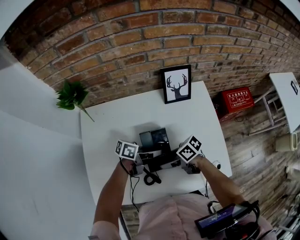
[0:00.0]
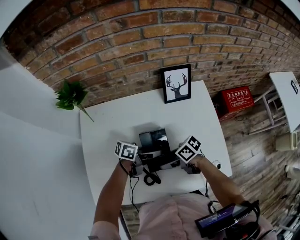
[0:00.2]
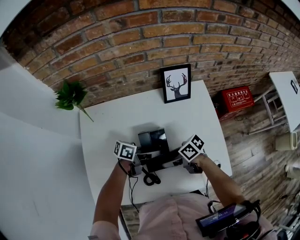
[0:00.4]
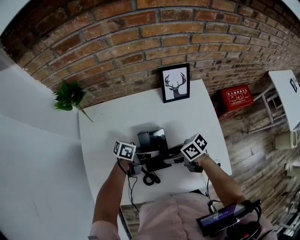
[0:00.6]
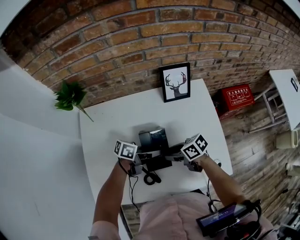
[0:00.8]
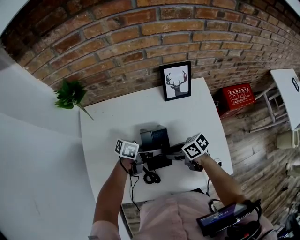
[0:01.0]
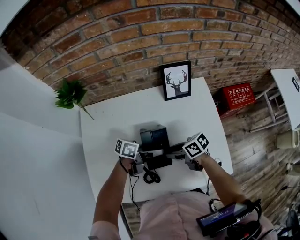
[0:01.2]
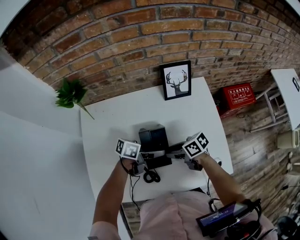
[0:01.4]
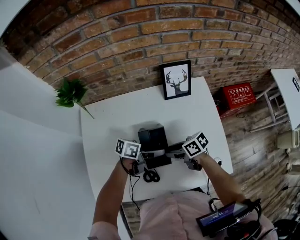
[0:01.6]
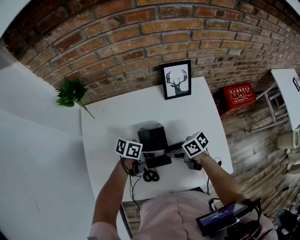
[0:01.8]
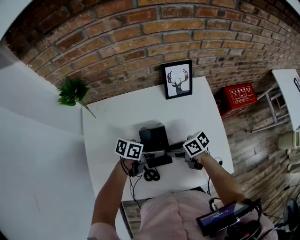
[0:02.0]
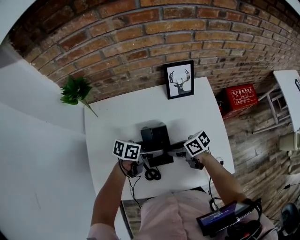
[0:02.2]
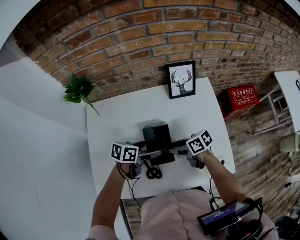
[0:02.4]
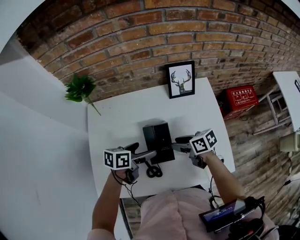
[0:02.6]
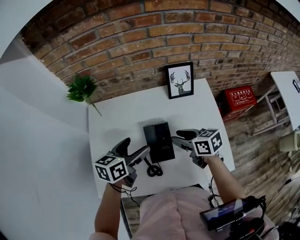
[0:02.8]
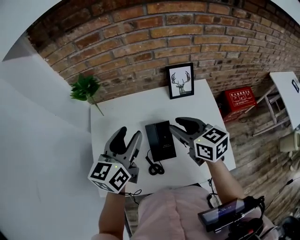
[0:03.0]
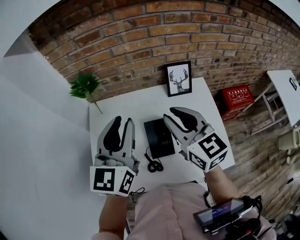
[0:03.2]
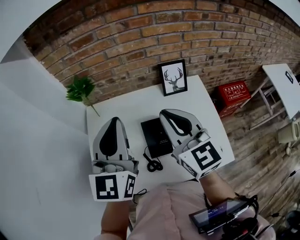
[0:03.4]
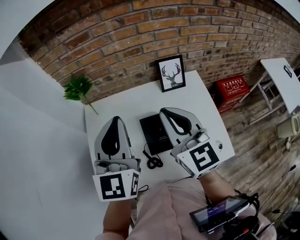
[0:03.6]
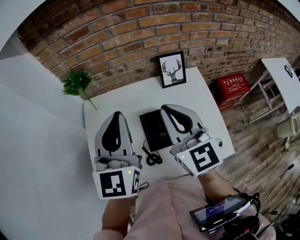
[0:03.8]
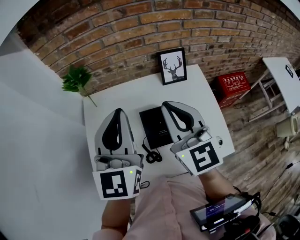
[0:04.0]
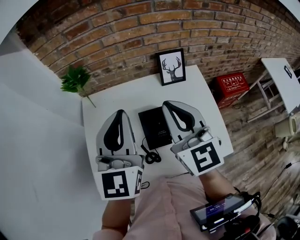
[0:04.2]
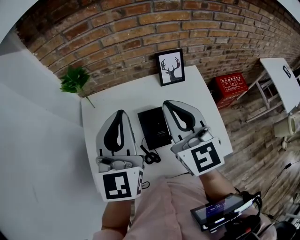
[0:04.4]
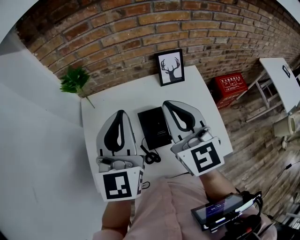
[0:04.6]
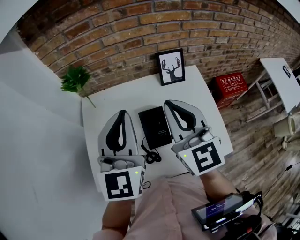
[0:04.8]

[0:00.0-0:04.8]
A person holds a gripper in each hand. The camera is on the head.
0:00.0 to 0:01.6: The left gripper opens up. Meanwhile the right gripper closes.
0:01.6 to 0:03.2: The grippers both shift upward by roughly 35 cm. The right gripper rotates some 70 degrees; the left gripper rotates roughly 90 degrees, and closes its fingers.
0:03.2 to 0:04.8: The grippers move only a little.

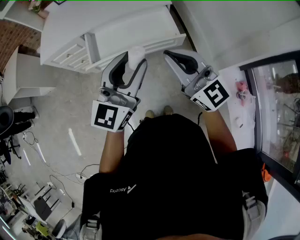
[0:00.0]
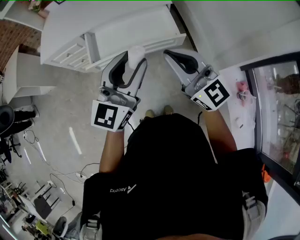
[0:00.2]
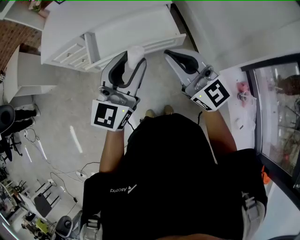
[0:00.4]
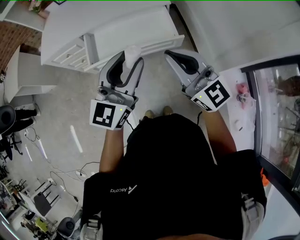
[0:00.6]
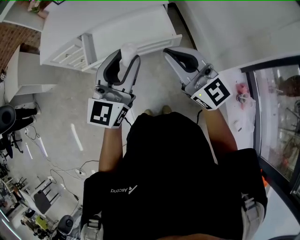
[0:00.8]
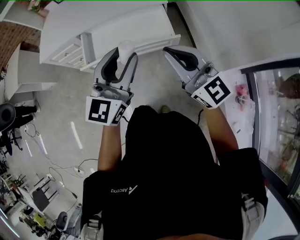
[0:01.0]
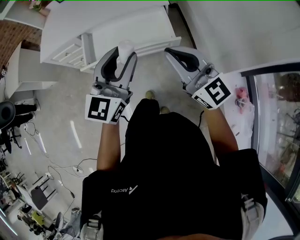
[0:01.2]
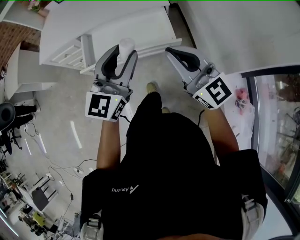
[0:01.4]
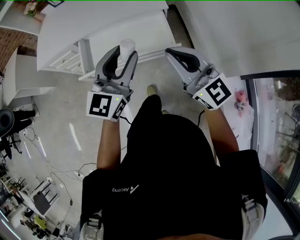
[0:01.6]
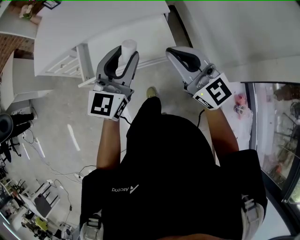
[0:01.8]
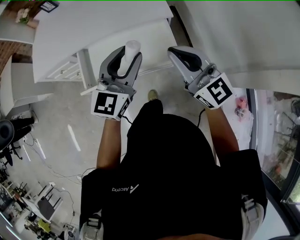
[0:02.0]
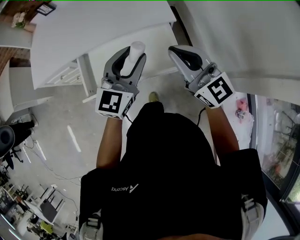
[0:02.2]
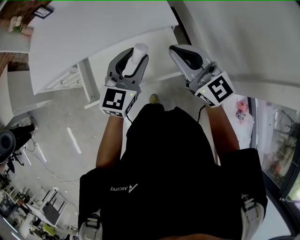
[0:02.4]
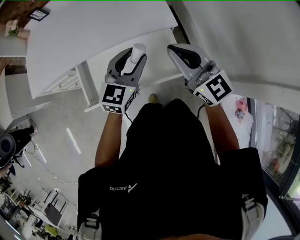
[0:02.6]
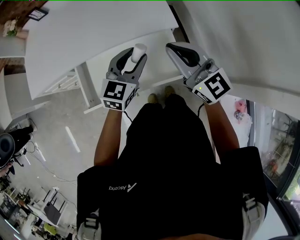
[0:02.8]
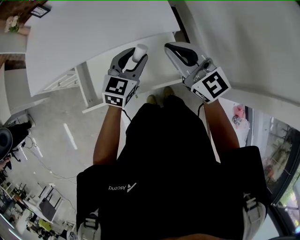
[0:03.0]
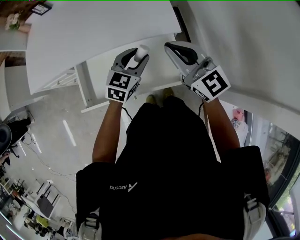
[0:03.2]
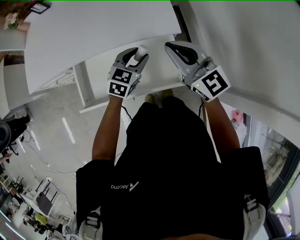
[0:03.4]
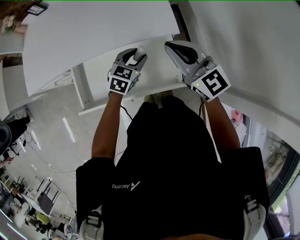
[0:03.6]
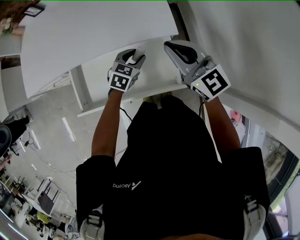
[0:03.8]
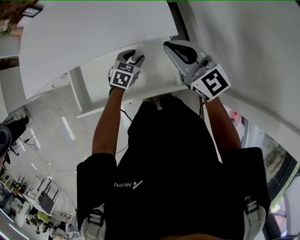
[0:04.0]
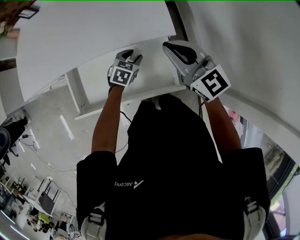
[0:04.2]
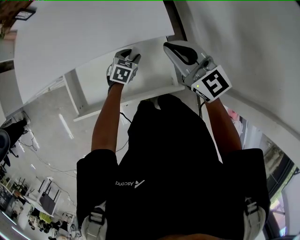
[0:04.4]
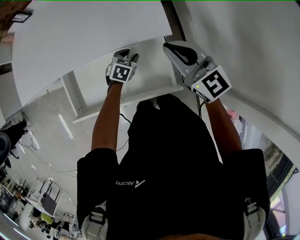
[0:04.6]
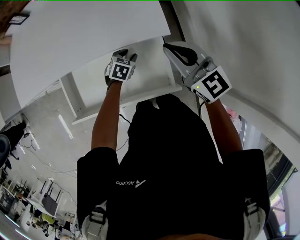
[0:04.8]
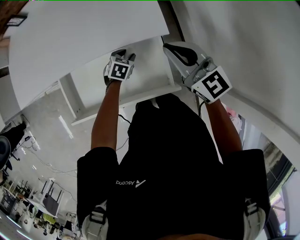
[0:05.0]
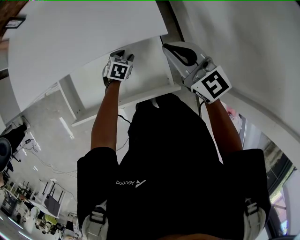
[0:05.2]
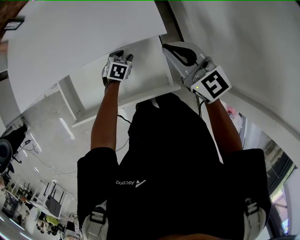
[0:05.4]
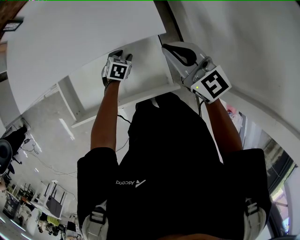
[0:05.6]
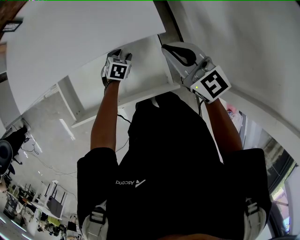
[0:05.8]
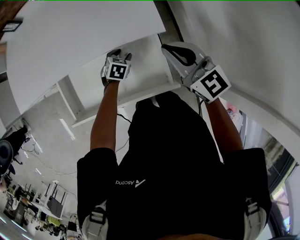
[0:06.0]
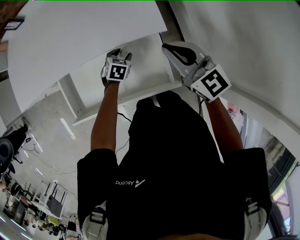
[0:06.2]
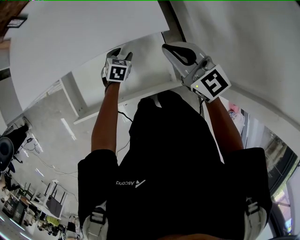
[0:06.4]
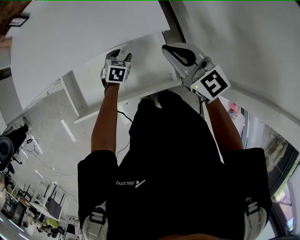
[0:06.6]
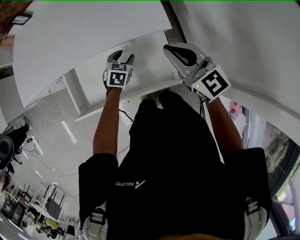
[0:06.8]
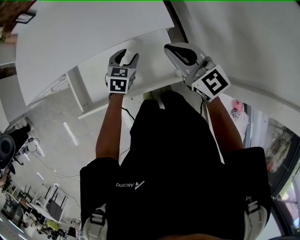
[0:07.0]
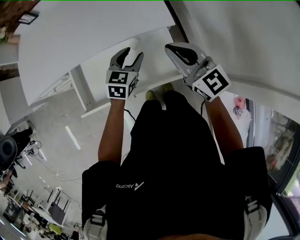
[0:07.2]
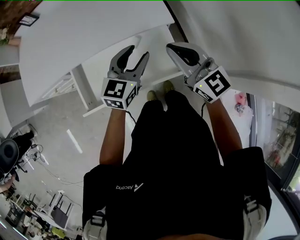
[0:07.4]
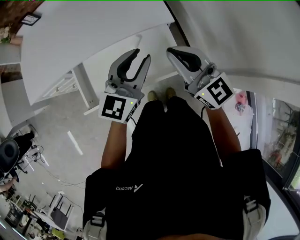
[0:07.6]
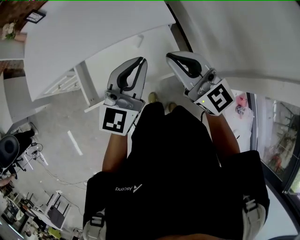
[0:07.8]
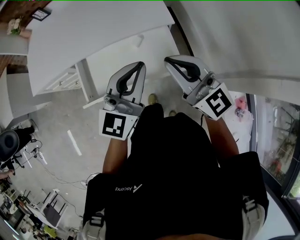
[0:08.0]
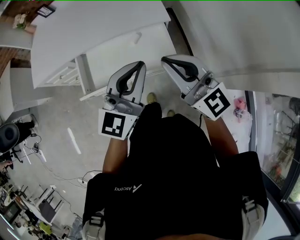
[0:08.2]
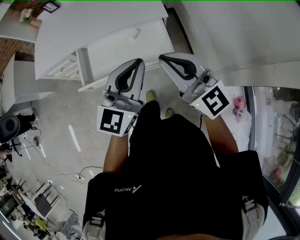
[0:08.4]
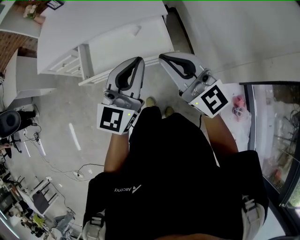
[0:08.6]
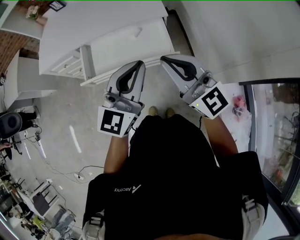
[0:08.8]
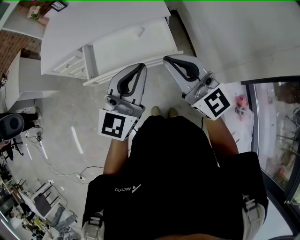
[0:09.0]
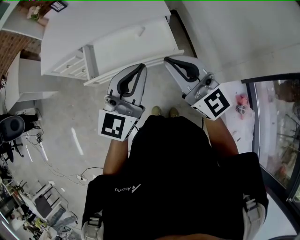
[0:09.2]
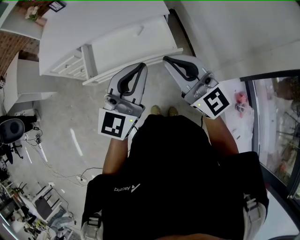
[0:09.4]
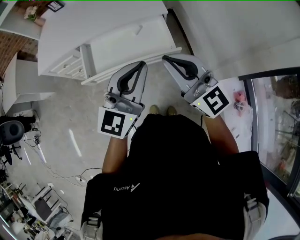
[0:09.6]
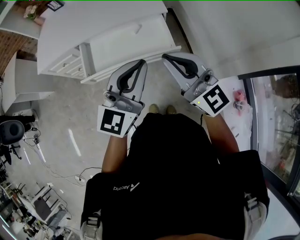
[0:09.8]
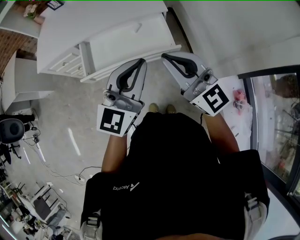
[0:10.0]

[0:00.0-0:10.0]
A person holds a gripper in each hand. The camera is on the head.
0:00.0 to 0:01.4: The left gripper is displaced forward and to the right by about 10 cm; the right gripper travels to the right and forward by some 10 cm.
0:01.4 to 0:02.8: The left gripper is displaced forward and downward by approximately 30 cm, and turns by roughly 20 degrees. Meanwhile the right gripper shifts roughly 25 cm forward.
0:02.8 to 0:04.2: The left gripper moves downward, approximately 20 cm, and tips its fingers downward by about 30 degrees. The right gripper is displaced forward and downward by about 10 cm.
0:04.2 to 0:05.8: The left gripper moves downward, about 5 cm.
0:05.8 to 0:07.2: The left gripper is displaced upward by about 20 cm, and changes its angle by some 30 degrees. The right gripper moves backward and to the left, approximately 10 cm.
0:07.2 to 0:08.6: Both grippers travel together backward and upward, roughly 30 cm. The left gripper tips its fingers upward by roughly 30 degrees, and closes up.
0:08.6 to 0:10.0: The left gripper moves approximately 5 cm.

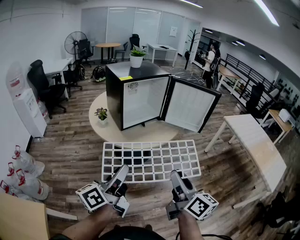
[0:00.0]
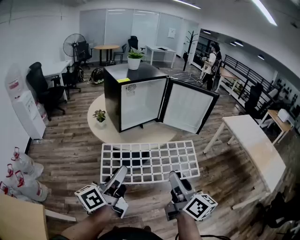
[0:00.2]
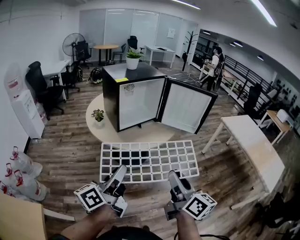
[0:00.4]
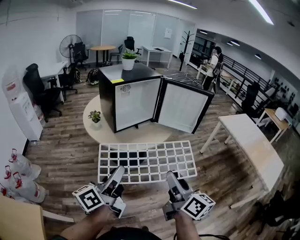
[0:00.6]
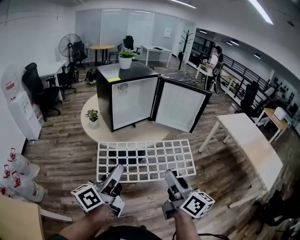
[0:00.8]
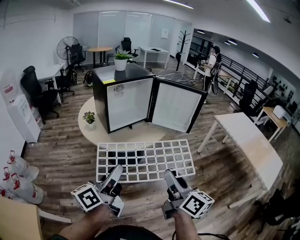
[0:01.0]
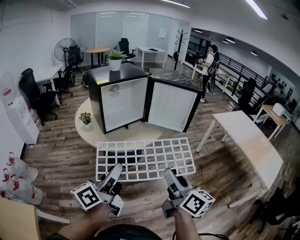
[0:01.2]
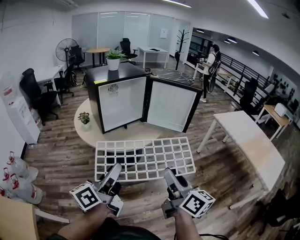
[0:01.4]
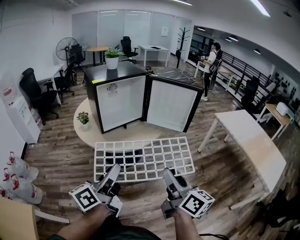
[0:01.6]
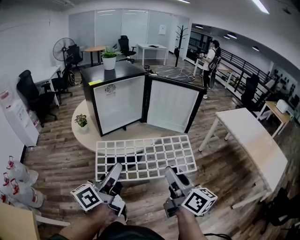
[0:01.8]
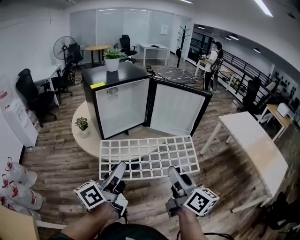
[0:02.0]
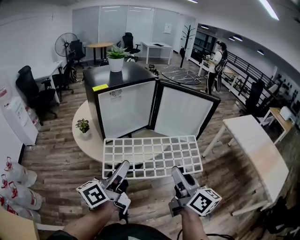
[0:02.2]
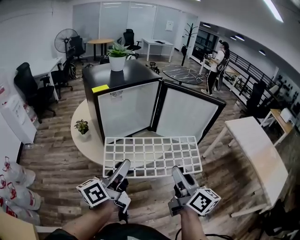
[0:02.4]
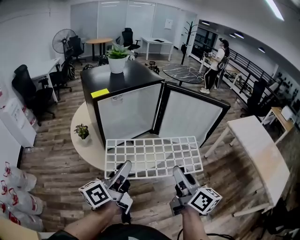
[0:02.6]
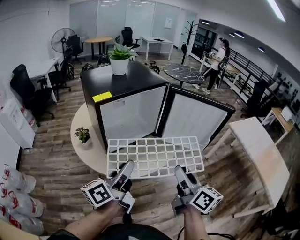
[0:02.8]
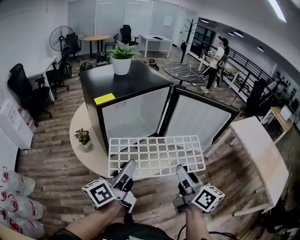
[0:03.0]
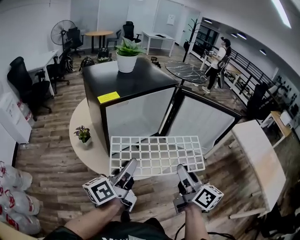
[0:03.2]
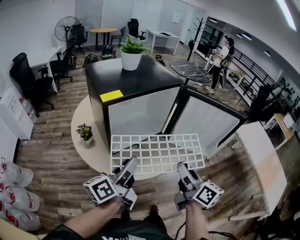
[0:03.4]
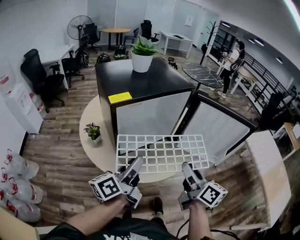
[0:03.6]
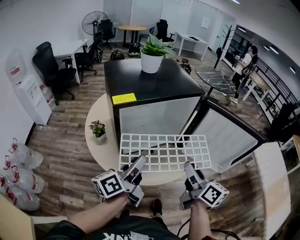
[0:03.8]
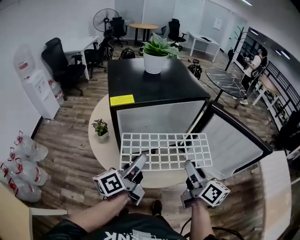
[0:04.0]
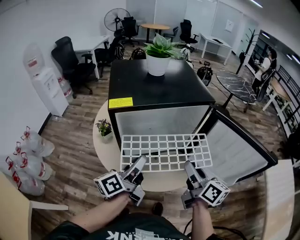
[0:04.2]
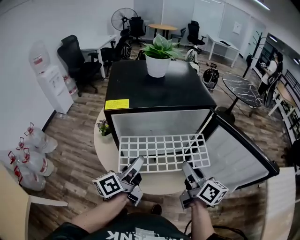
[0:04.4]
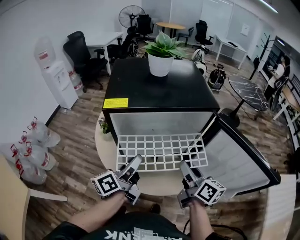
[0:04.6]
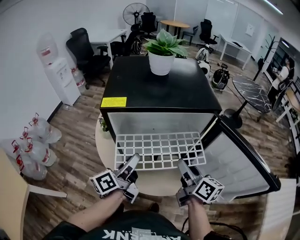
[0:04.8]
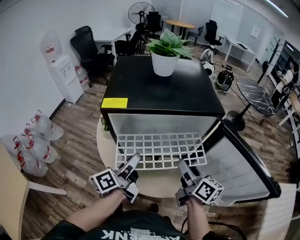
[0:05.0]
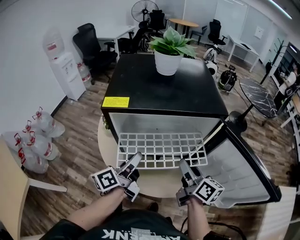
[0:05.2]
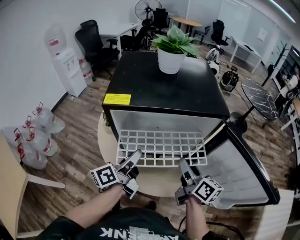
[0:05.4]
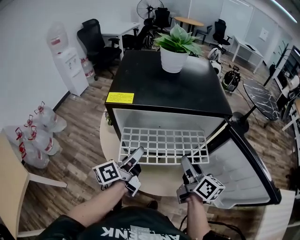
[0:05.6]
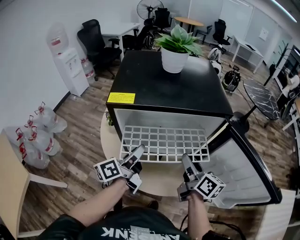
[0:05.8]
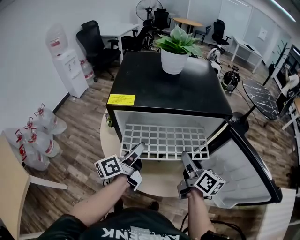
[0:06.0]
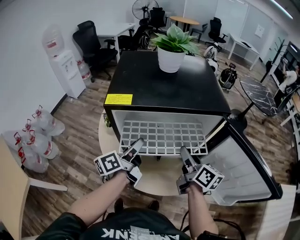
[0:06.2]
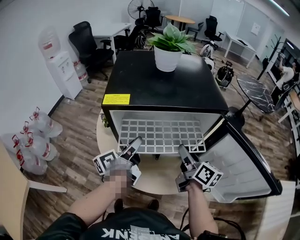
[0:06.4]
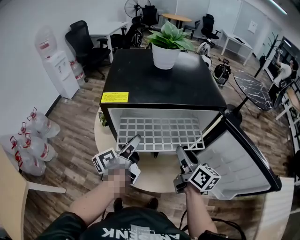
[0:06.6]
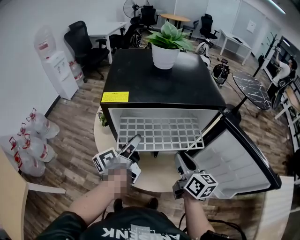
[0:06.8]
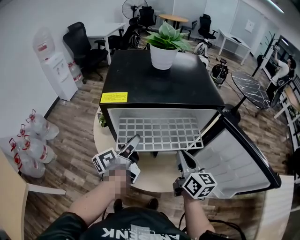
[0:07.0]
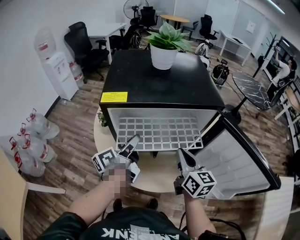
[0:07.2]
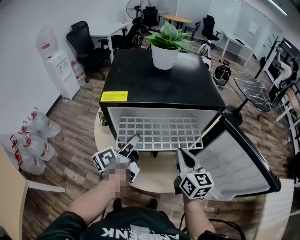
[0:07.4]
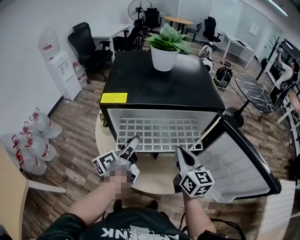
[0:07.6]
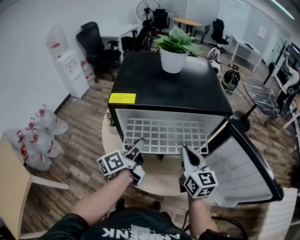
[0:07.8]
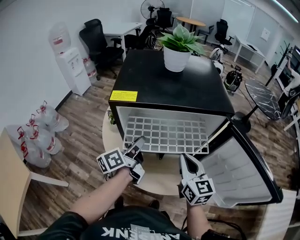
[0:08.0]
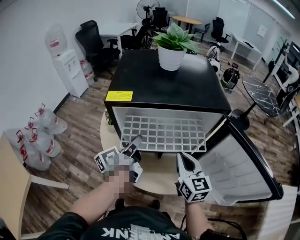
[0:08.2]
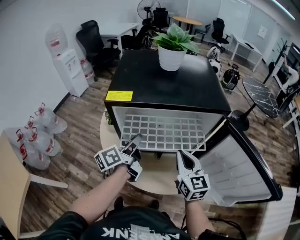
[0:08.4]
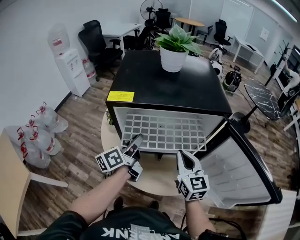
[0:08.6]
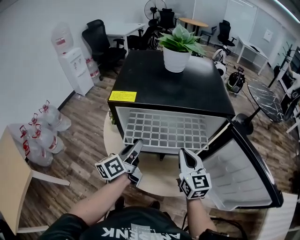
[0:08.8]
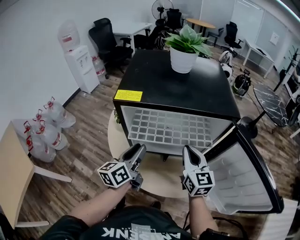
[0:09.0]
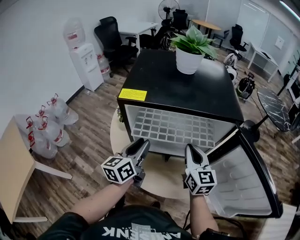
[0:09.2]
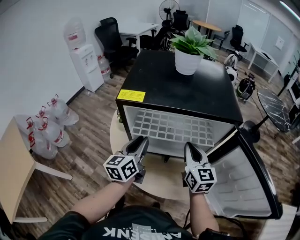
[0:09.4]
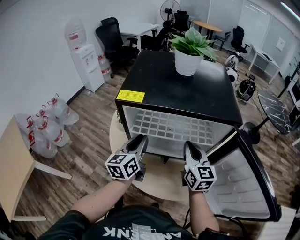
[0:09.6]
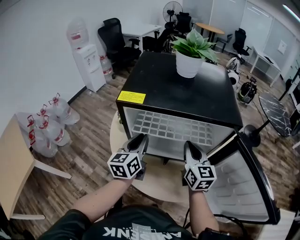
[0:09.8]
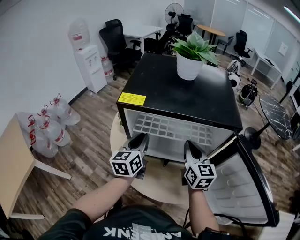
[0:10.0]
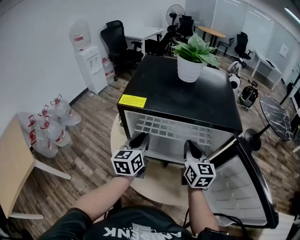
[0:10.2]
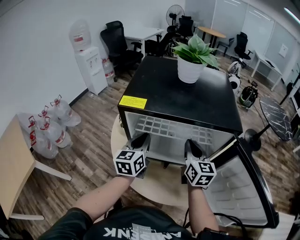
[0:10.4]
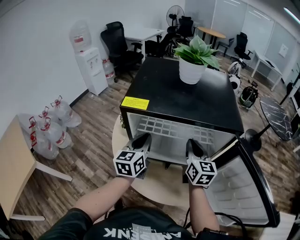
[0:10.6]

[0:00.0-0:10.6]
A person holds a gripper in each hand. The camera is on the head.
0:00.0 to 0:01.6: The grippers both shift to the right by roughly 15 cm.
0:01.6 to 0:03.0: The two grippers go about 30 cm forward.
0:03.0 to 0:04.6: The right gripper shifts by approximately 25 cm, and changes its angle by some 30 degrees, while the left gripper shifts by roughly 15 cm, and changes its angle by about 30 degrees.
0:04.6 to 0:06.0: The two grippers go approximately 5 cm forward.
0:06.0 to 0:07.6: The right gripper swivels roughly 30 degrees, and closes its fingers.
0:07.6 to 0:09.0: The left gripper rotates approximately 20 degrees.
0:09.0 to 0:10.6: Both grippers move forward, roughly 10 cm. The left gripper turns by some 20 degrees, and closes its fingers.
